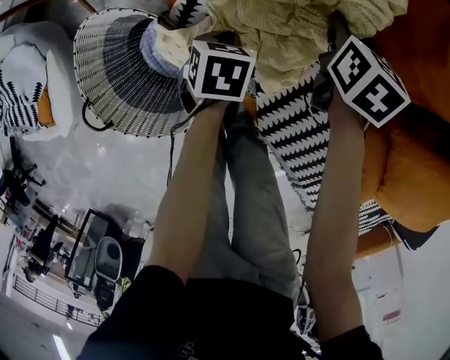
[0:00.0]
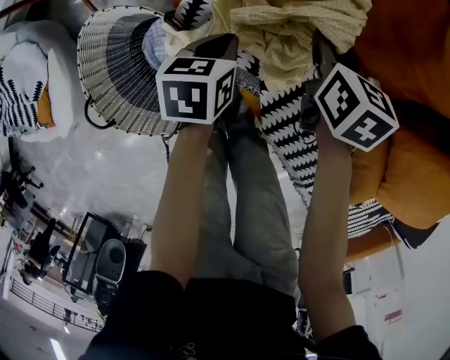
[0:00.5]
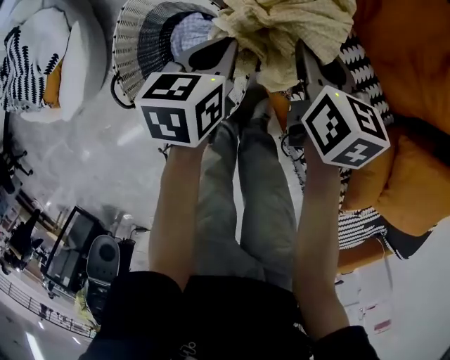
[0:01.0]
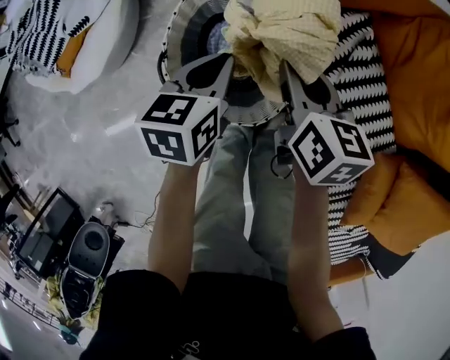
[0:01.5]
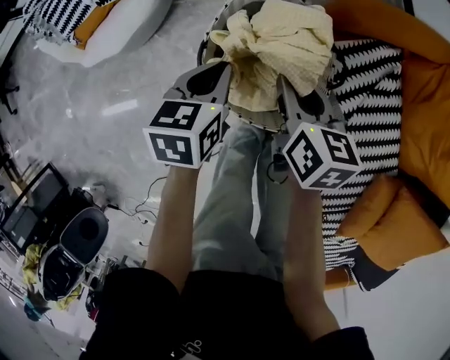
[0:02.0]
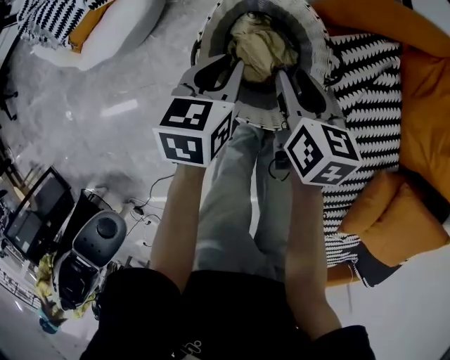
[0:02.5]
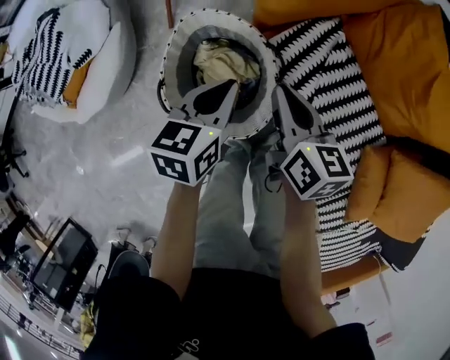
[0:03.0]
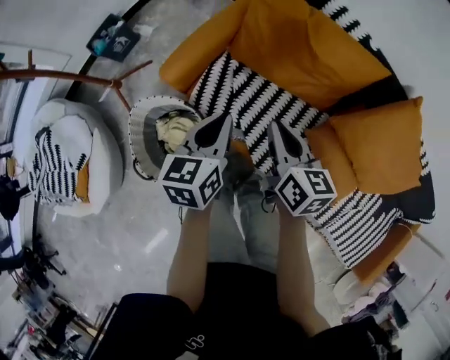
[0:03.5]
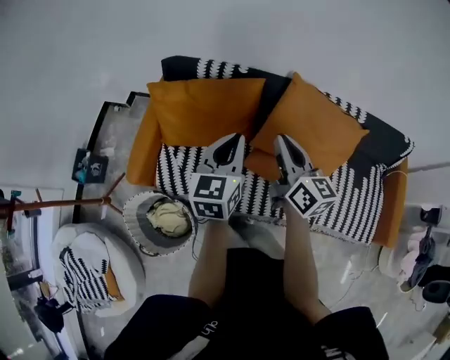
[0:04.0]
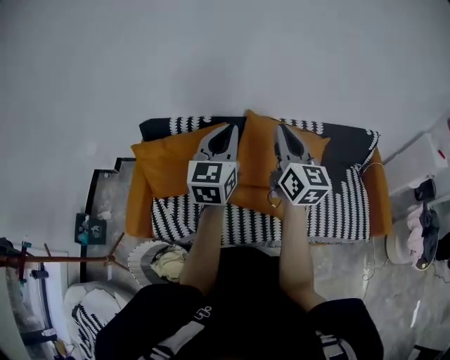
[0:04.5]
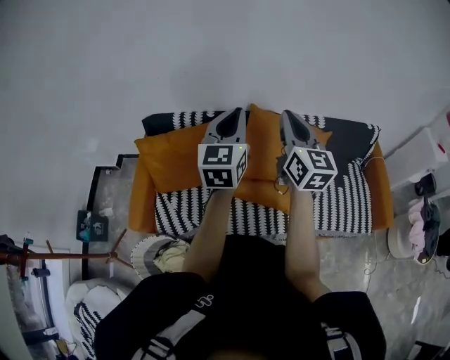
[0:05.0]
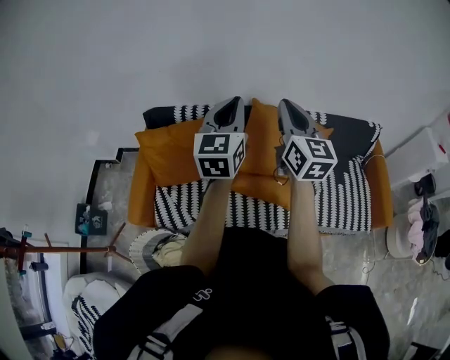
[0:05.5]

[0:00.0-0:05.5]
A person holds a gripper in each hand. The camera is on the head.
0:00.0 to 0:02.0: The left gripper shifts by some 40 cm, and swivels approximately 40 degrees; the right gripper ends up approximately 50 cm from where it was, and swivels some 40 degrees.
0:02.0 to 0:03.5: The left gripper changes place by approximately 40 cm, and swivels about 40 degrees. The right gripper ends up about 40 cm from where it was, and turns by some 40 degrees.
0:03.5 to 0:05.5: The right gripper shifts roughly 40 cm upward, and turns by about 60 degrees. The left gripper shifts by some 50 cm, and turns by approximately 50 degrees.

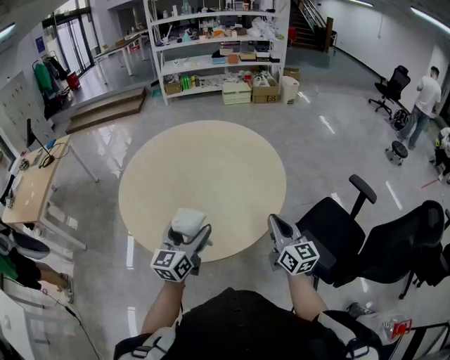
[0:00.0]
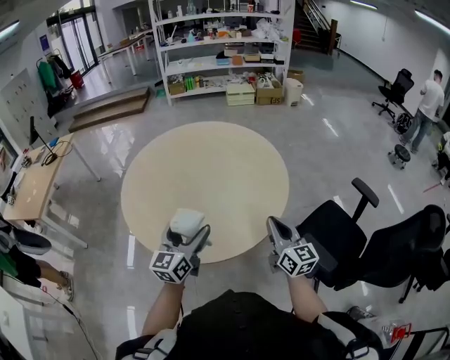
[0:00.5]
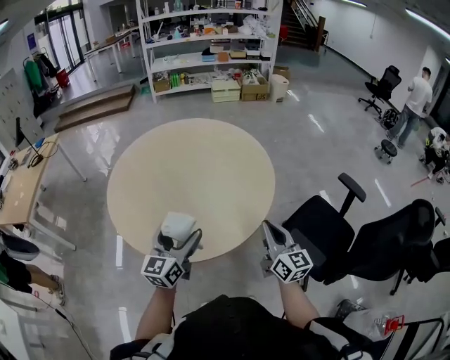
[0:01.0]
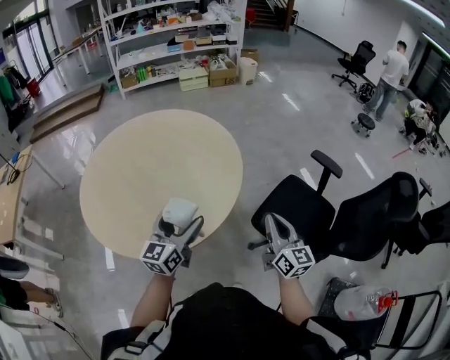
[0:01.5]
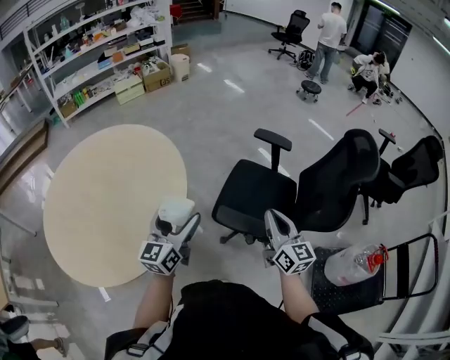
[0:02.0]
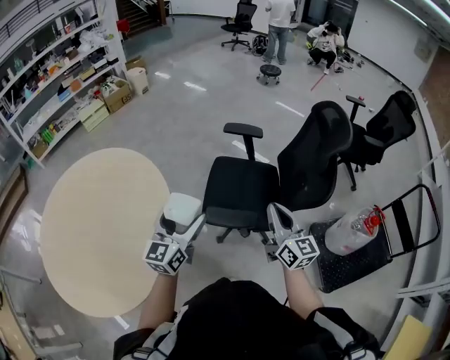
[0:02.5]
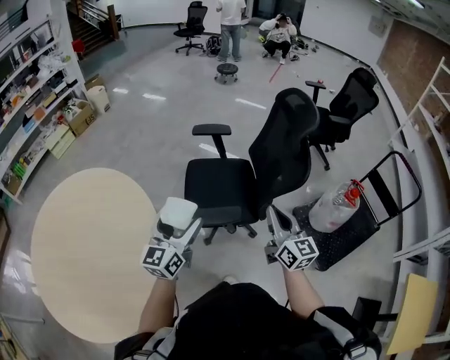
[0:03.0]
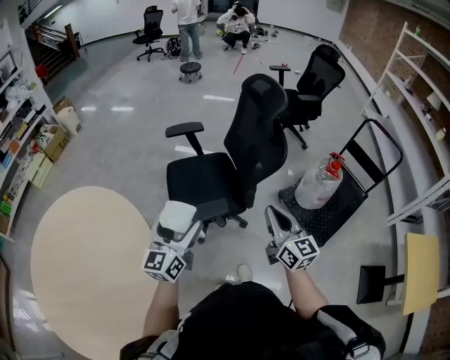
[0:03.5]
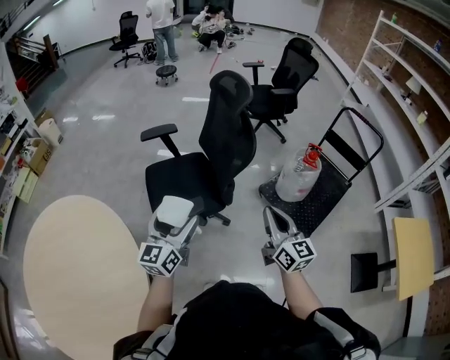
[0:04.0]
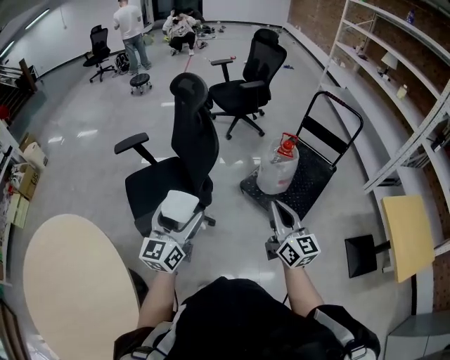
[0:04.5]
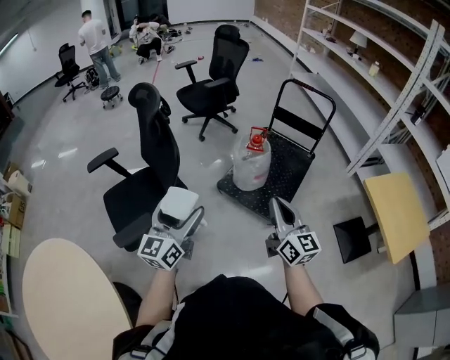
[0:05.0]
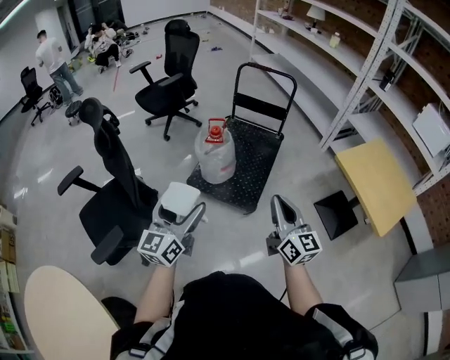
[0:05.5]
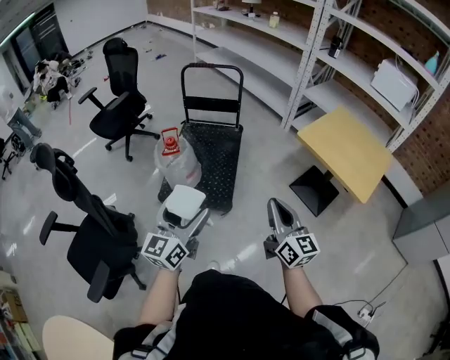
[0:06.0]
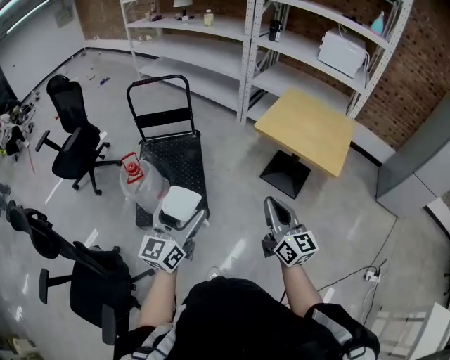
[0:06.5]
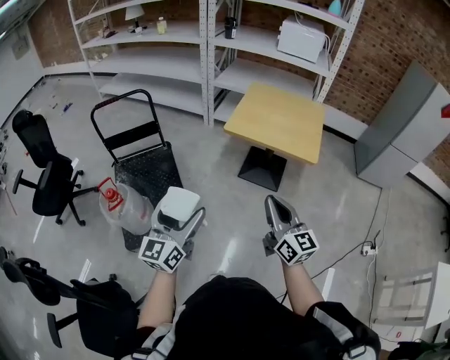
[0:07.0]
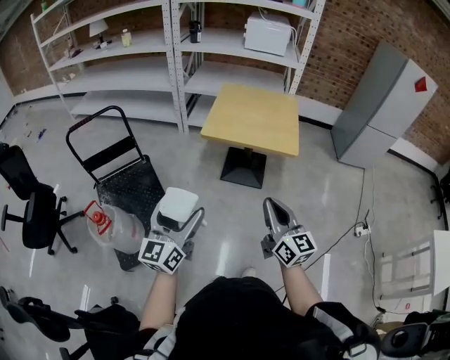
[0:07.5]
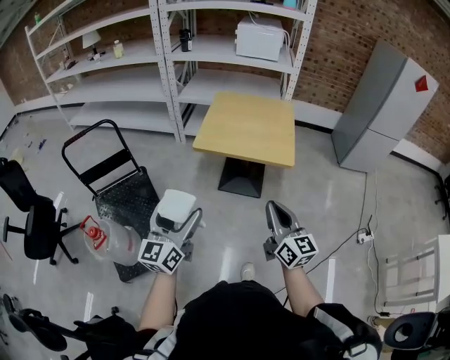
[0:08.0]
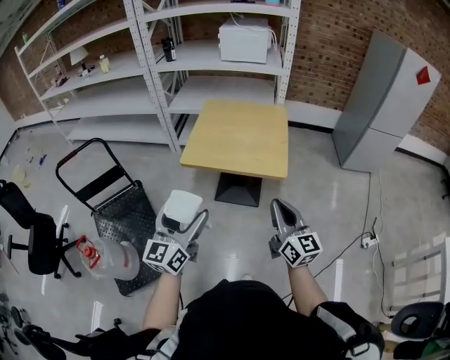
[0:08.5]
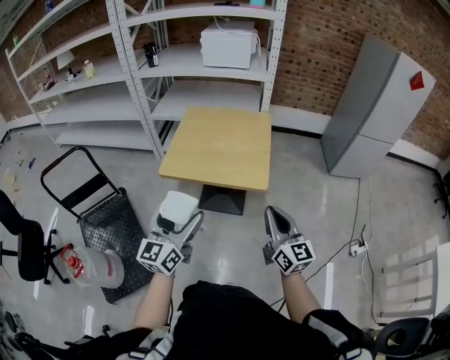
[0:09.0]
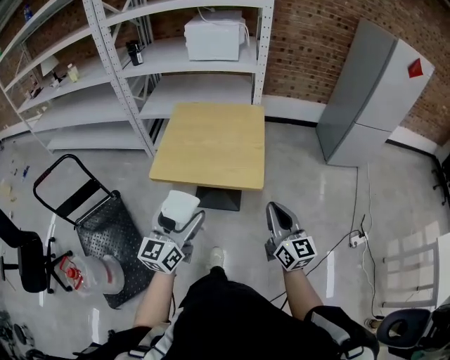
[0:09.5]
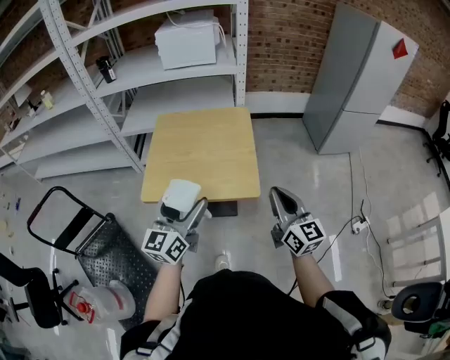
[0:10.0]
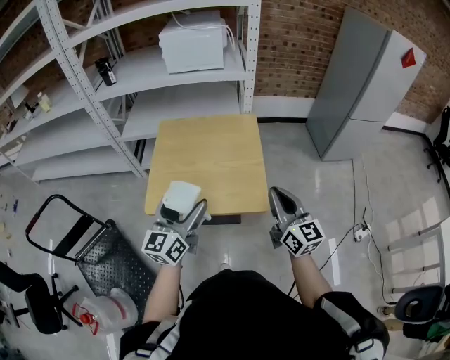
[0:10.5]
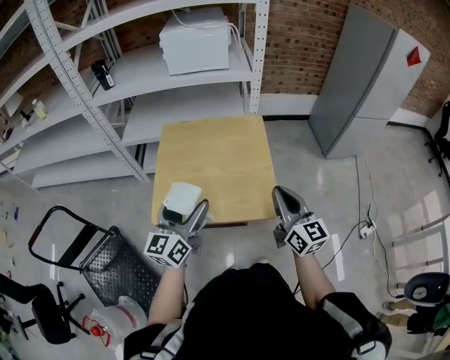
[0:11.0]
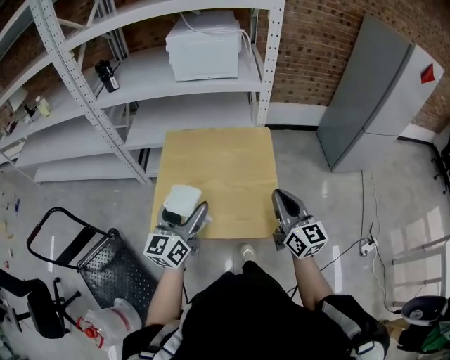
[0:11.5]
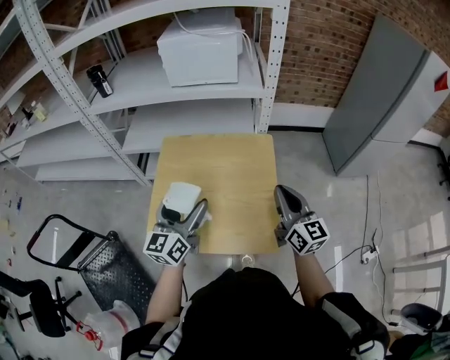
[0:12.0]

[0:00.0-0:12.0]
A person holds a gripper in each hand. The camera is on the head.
0:00.0 to 0:02.0: The right gripper changes place by some 30 cm, and swivels some 30 degrees. Meanwhile the left gripper moves roughly 30 cm, and swivels approximately 30 degrees.
0:02.0 to 0:04.0: The left gripper ends up approximately 20 cm from where it was, and turns by some 50 degrees. The right gripper changes place by some 25 cm, and changes its angle by about 40 degrees.
0:04.0 to 0:06.0: Both grippers are carried about 50 cm. The right gripper swivels about 50 degrees; the left gripper changes its angle by roughly 50 degrees.
0:06.0 to 0:08.0: The left gripper ends up some 25 cm from where it was, and changes its angle by roughly 40 degrees; the right gripper shifts by roughly 20 cm, and rotates some 40 degrees.
0:08.0 to 0:10.0: The two grippers go approximately 35 cm forward and to the right.
0:10.0 to 0:12.0: Both grippers travel together forward, approximately 25 cm.

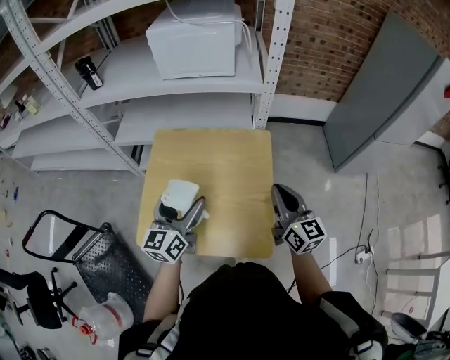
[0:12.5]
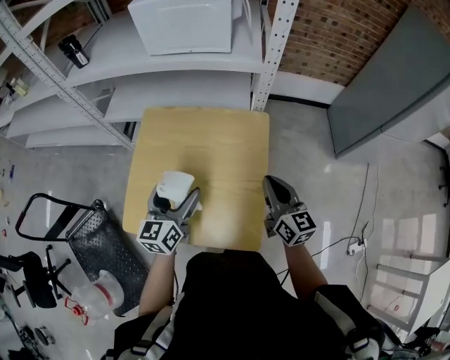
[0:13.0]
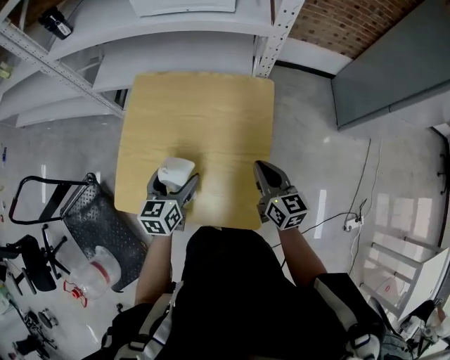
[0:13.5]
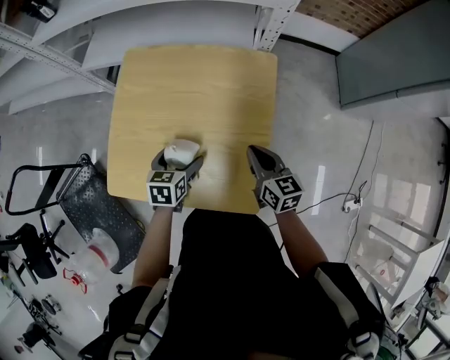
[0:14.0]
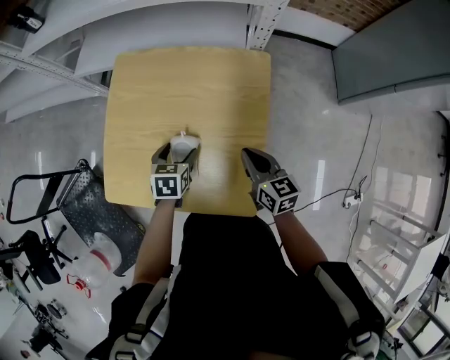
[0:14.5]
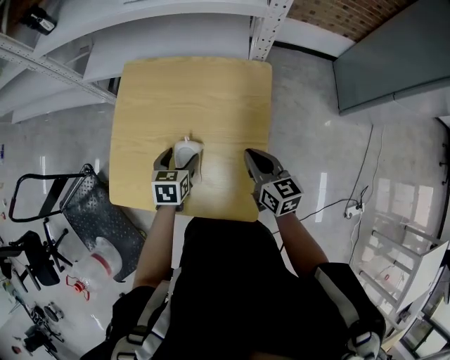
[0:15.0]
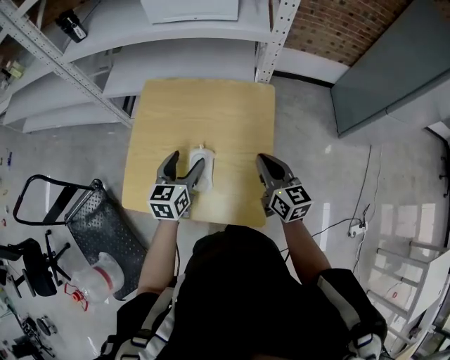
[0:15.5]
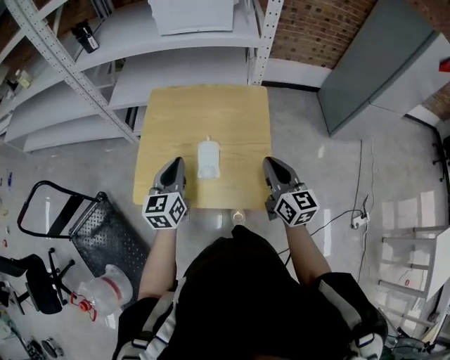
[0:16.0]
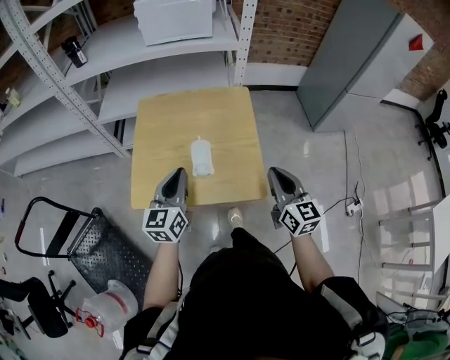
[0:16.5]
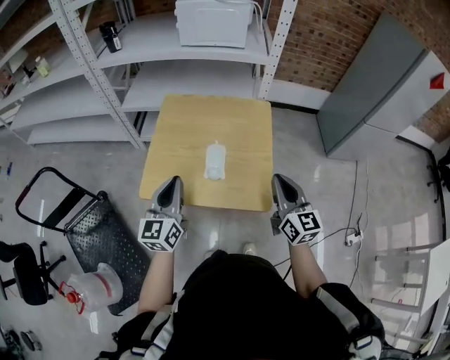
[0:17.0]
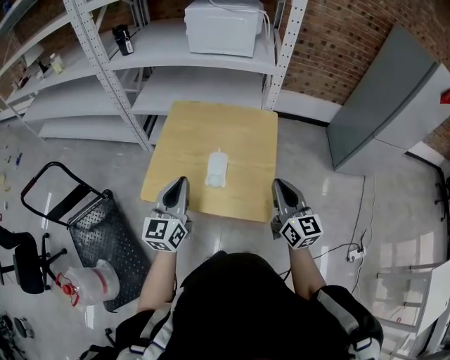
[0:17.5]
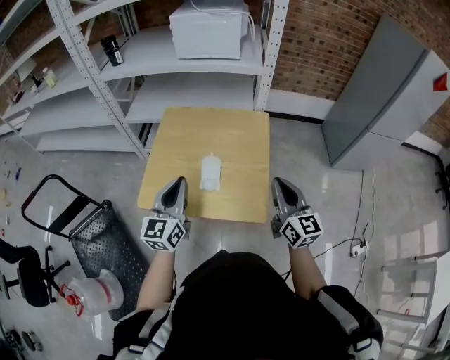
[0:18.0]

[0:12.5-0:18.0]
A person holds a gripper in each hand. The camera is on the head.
0:12.5 to 0:14.5: Both grippers travel together downward, some 20 cm. The right gripper turns by about 30 degrees. Meanwhile the left gripper points its fingers approximately 50 degrees further downward.
0:14.5 to 0:16.0: The right gripper heads upward and backward, covering roughly 20 cm, and turns by some 20 degrees. Meanwhile the left gripper heads upward and to the left, covering approximately 20 cm, points its fingers some 40 degrees further upward, and closes.
0:16.0 to 0:18.0: The two grippers go about 10 cm backward and upward.

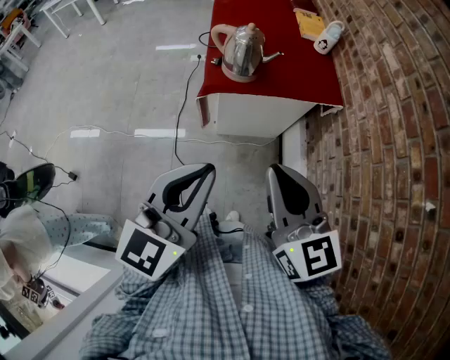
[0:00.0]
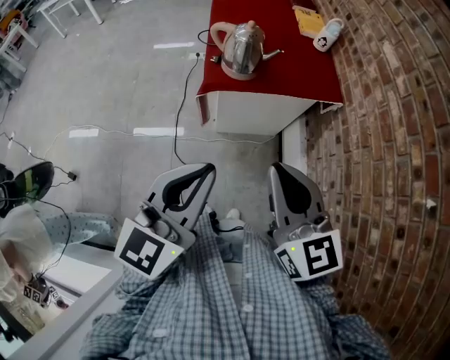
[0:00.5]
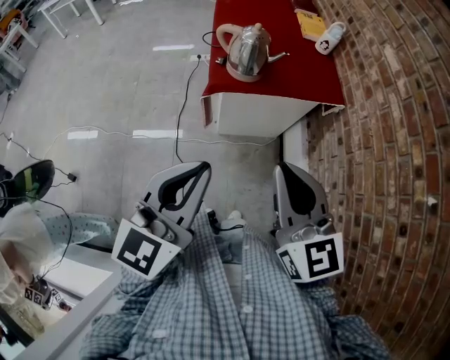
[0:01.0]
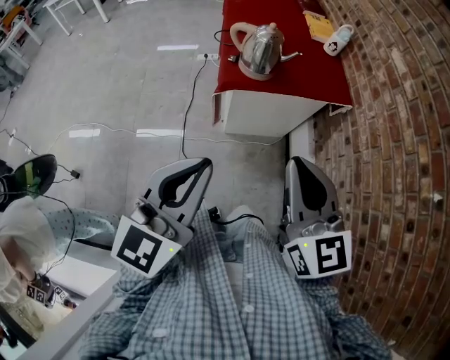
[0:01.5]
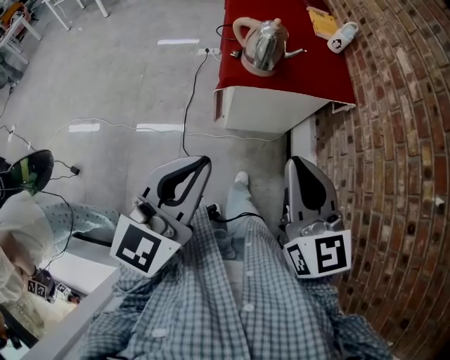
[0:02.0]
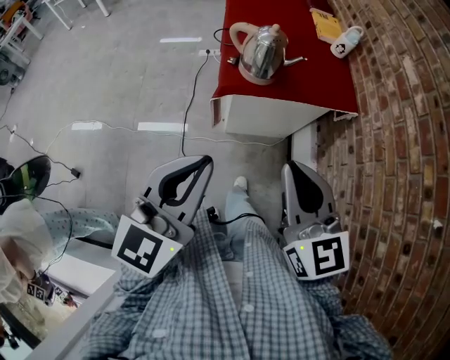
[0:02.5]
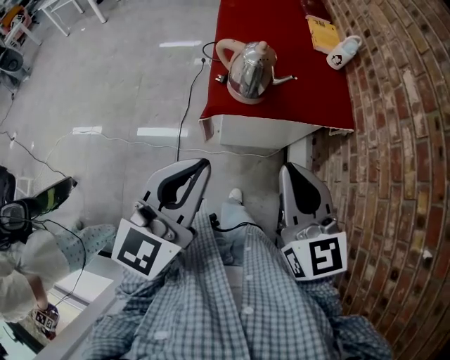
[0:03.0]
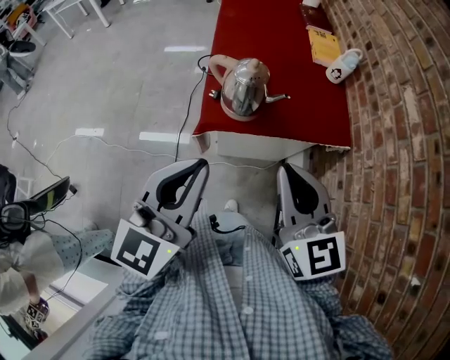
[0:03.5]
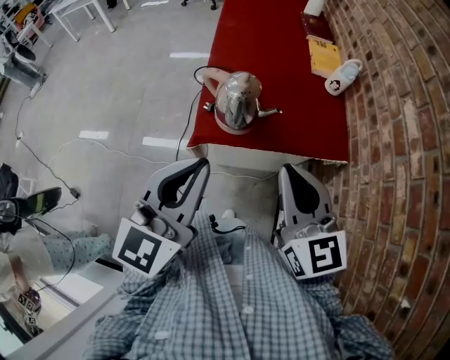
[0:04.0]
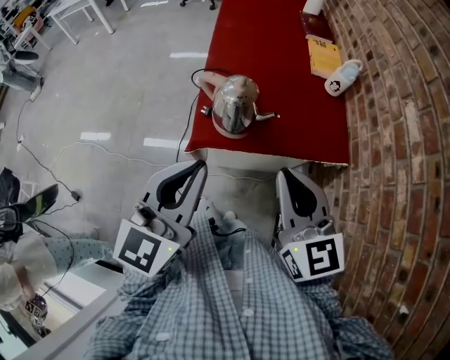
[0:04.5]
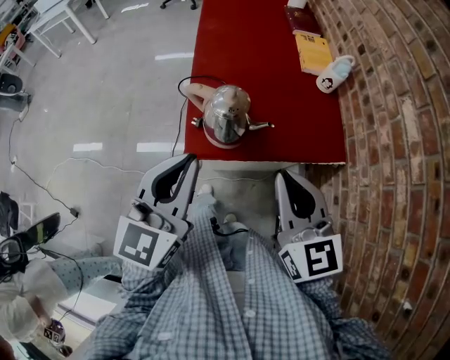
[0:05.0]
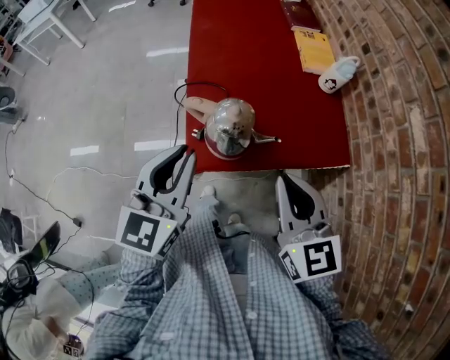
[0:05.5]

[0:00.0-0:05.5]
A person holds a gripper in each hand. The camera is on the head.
0:00.0 to 0:02.0: The left gripper heads to the left, covering approximately 10 cm.
0:02.0 to 0:03.5: Both grippers travel together forward, roughly 20 cm.
0:03.5 to 0:05.5: Both grippers travel together forward, roughly 15 cm.
